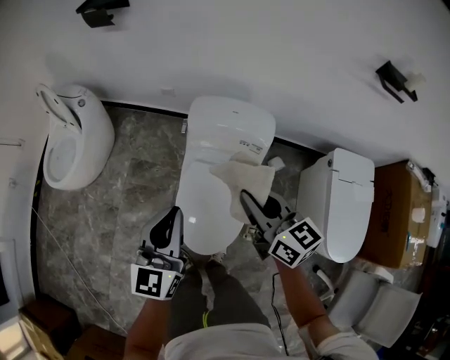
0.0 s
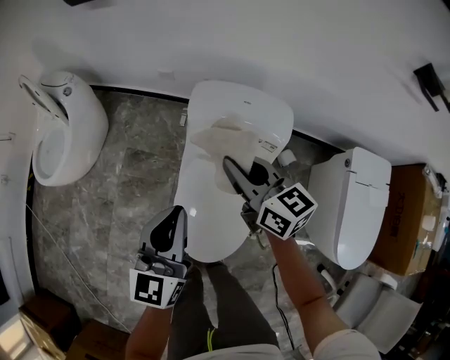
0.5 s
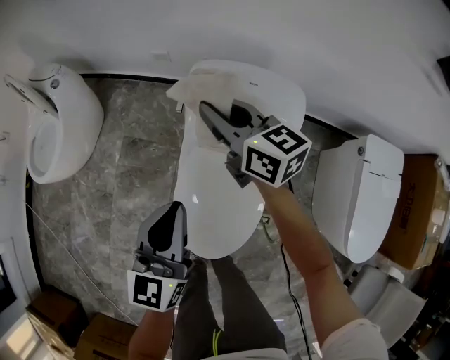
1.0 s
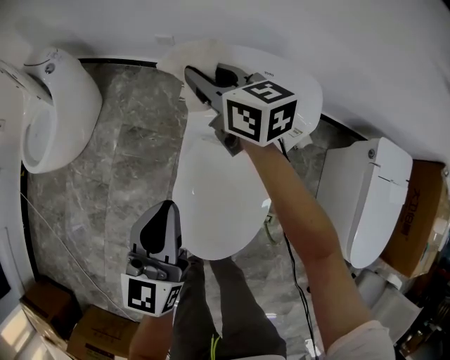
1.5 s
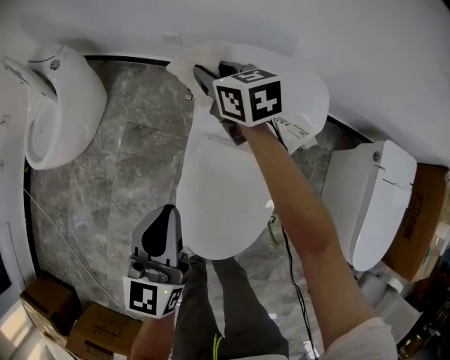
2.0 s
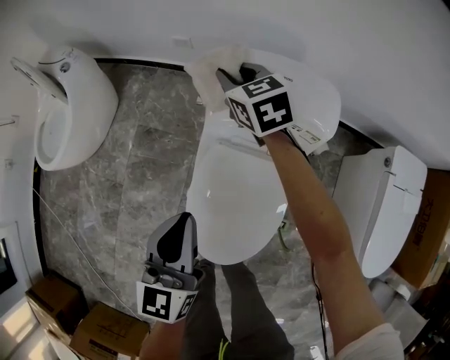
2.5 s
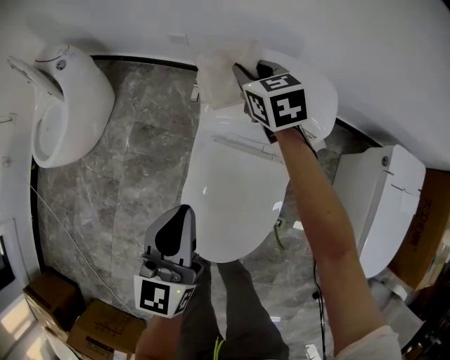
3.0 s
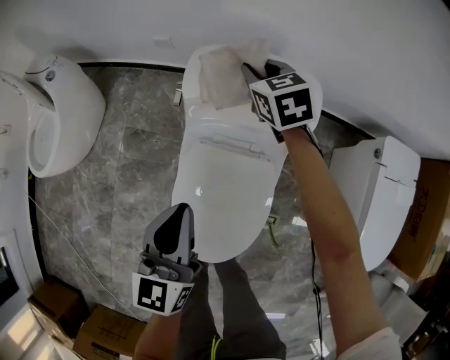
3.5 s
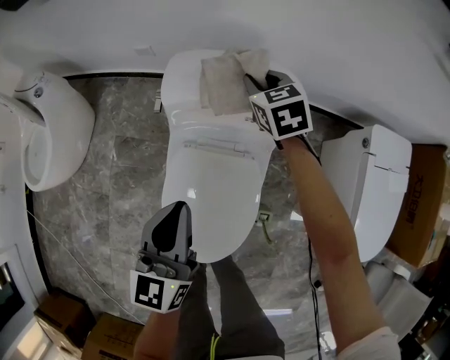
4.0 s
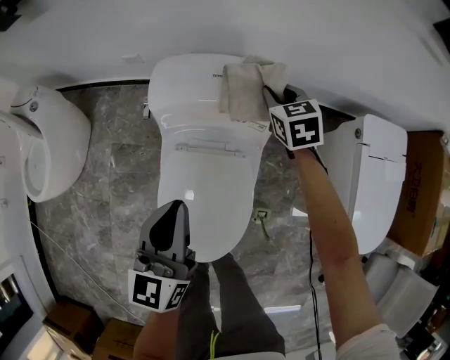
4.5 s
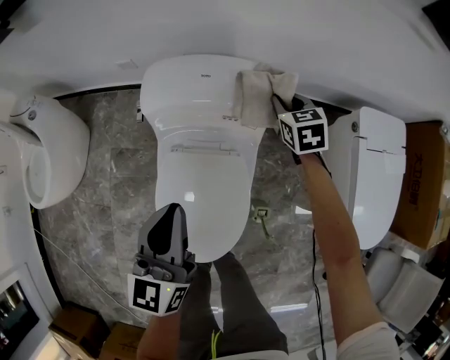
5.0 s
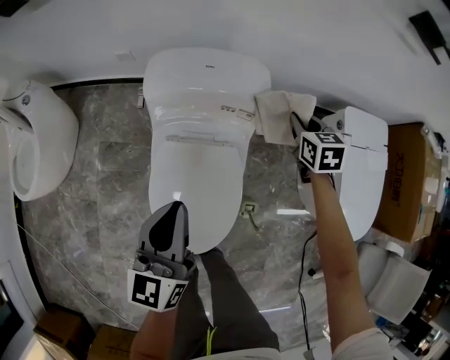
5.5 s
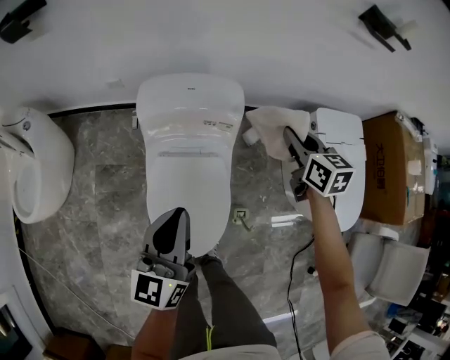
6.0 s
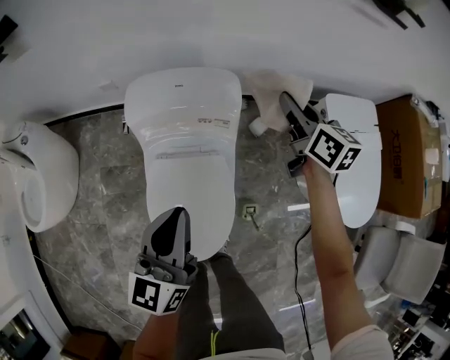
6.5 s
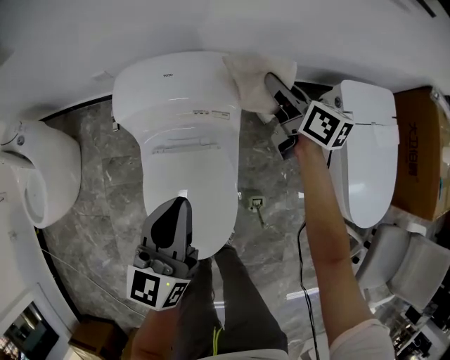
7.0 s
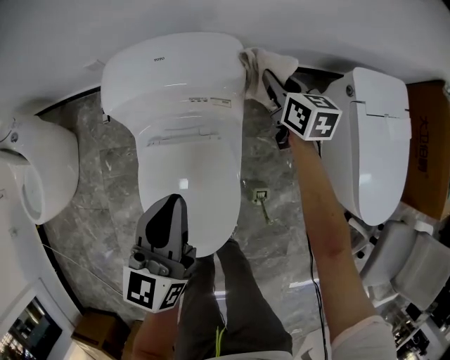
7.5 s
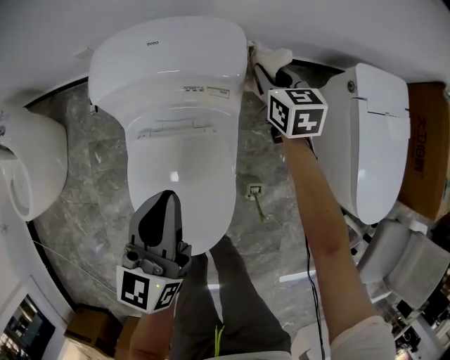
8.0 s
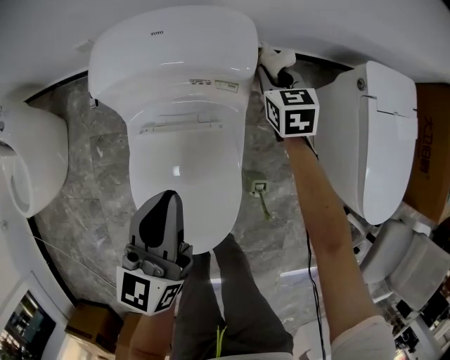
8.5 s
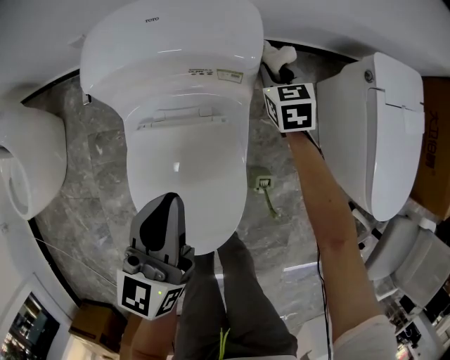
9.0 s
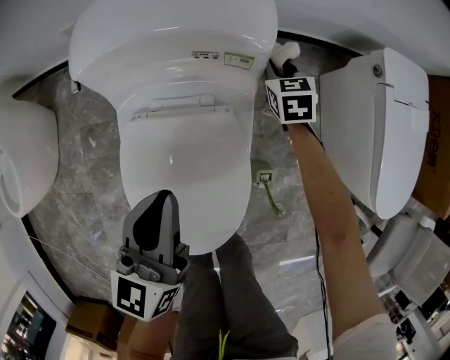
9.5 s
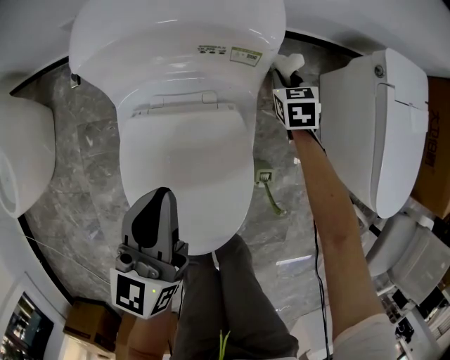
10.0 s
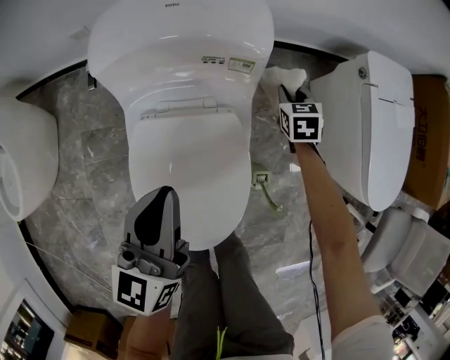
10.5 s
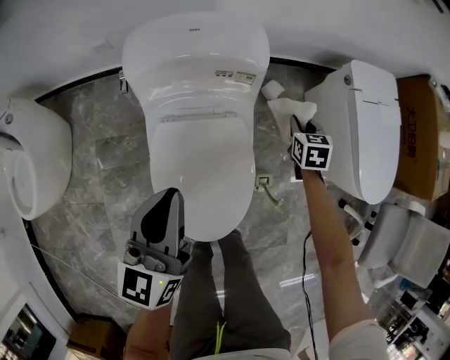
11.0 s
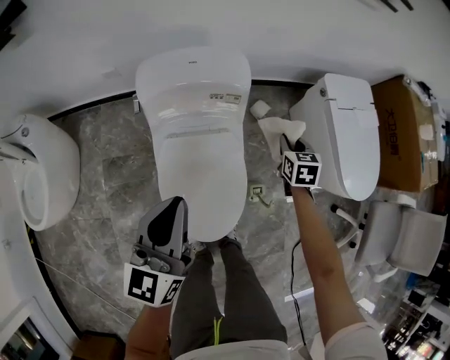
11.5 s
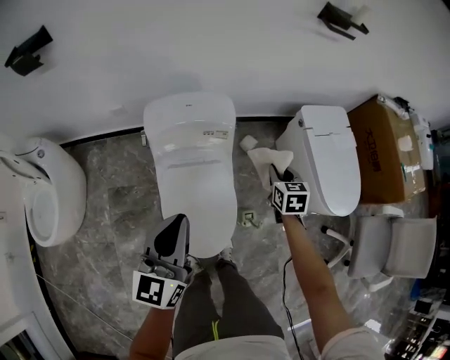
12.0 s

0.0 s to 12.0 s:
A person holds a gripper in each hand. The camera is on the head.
0.0 to 2.0 s: The left gripper is displaced downward and forward by approximately 25 cm. Meanwhile the right gripper moves forward and downward, some 50 cm.
2.0 to 4.0 s: The left gripper travels to the right by some 10 cm; the right gripper moves to the right, about 20 cm, and rotates about 30 degrees.
4.0 to 6.0 s: The left gripper travels upward and backward by some 15 cm; the right gripper shifts some 30 cm backward, to the right and upward, and swivels roughly 30 degrees.
6.0 to 8.0 s: The left gripper heads downward, forward and to the right, covering about 20 cm, while the right gripper shifts some 30 cm downward and forward.
8.0 to 10.0 s: The left gripper is displaced downward and to the left by some 10 cm, while the right gripper heads downward, covering about 20 cm, and rotates approximately 20 degrees.
10.0 to 12.0 s: The grippers both shift upward and backward by approximately 40 cm.

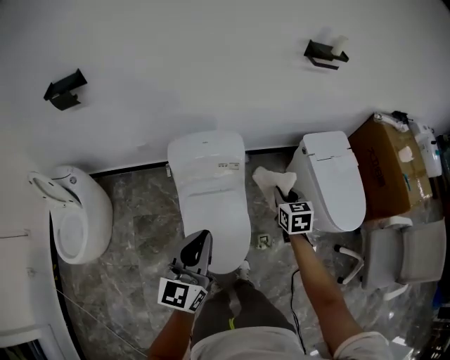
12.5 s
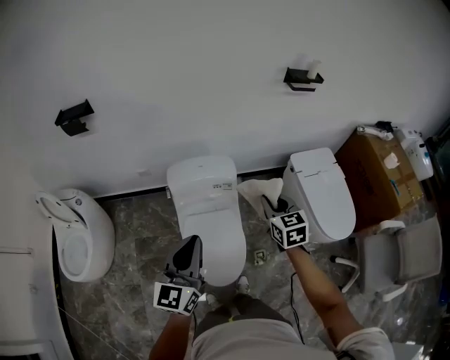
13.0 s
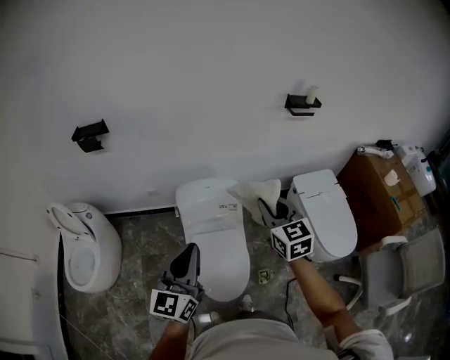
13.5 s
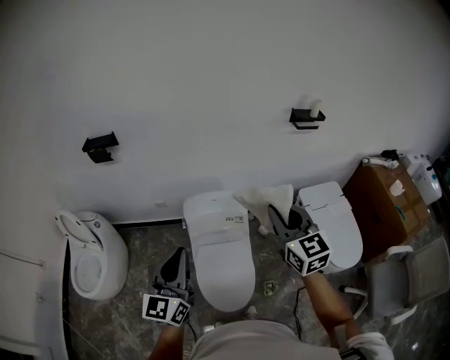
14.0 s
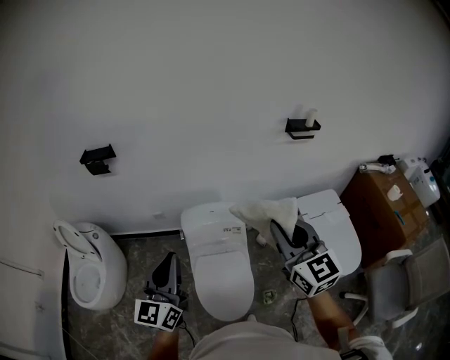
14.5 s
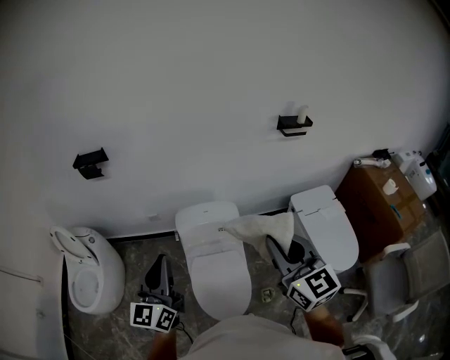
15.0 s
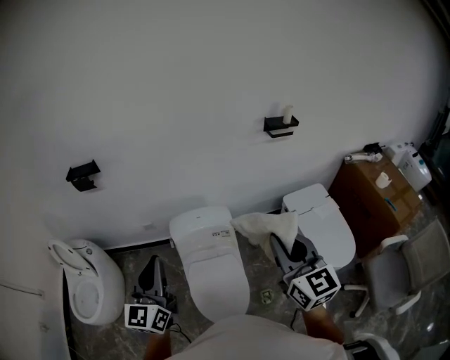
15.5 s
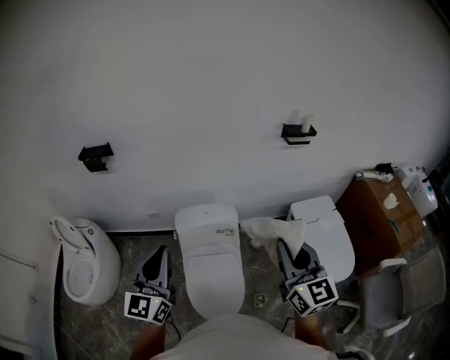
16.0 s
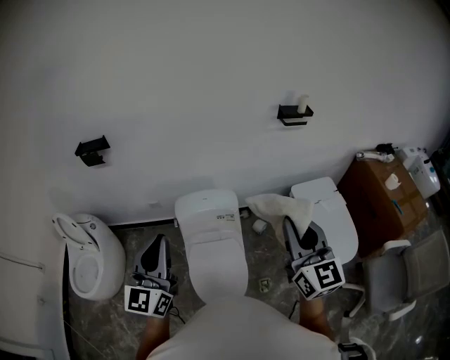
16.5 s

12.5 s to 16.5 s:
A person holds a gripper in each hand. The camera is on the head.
12.5 to 14.5 s: The right gripper moves upward, about 40 cm, and points its fingers roughly 40 degrees further upward. Meanwhile the left gripper travels upward and to the left by approximately 20 cm.
14.5 to 16.5 s: The right gripper shifts approximately 10 cm to the right.

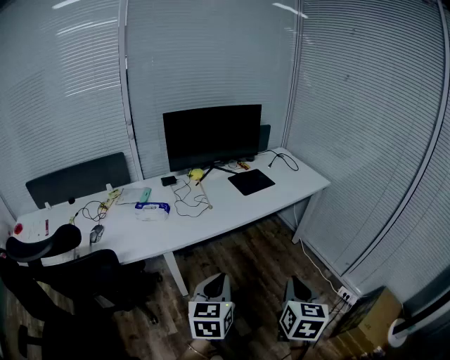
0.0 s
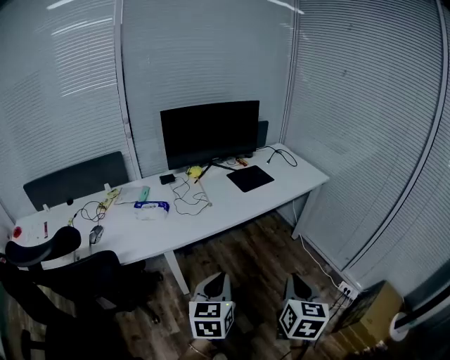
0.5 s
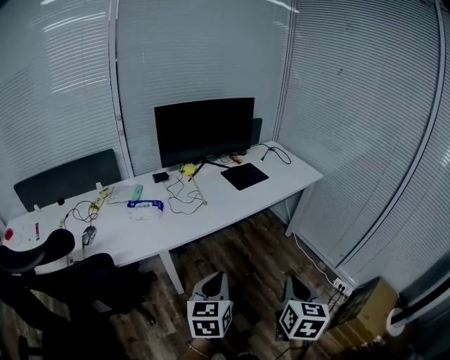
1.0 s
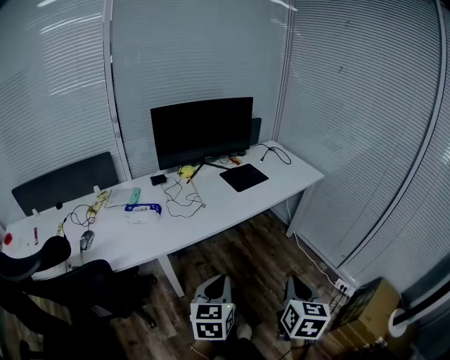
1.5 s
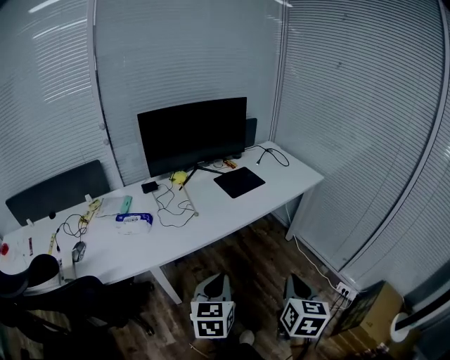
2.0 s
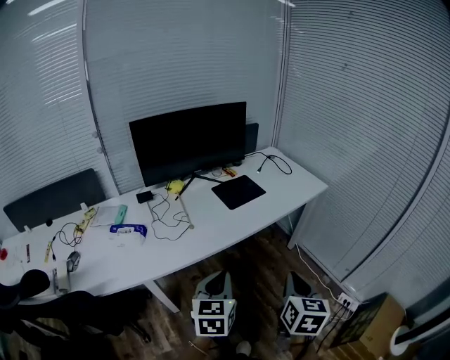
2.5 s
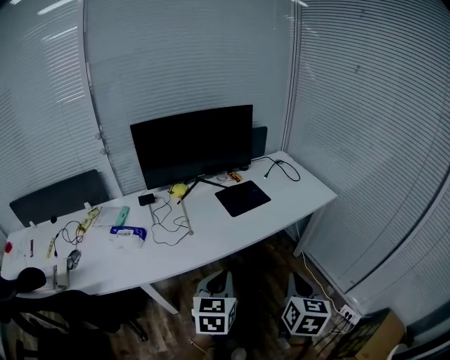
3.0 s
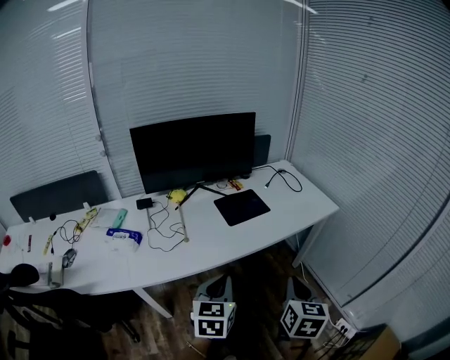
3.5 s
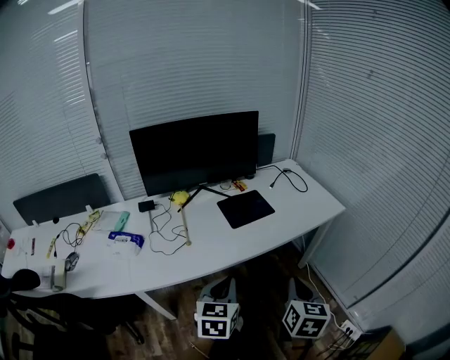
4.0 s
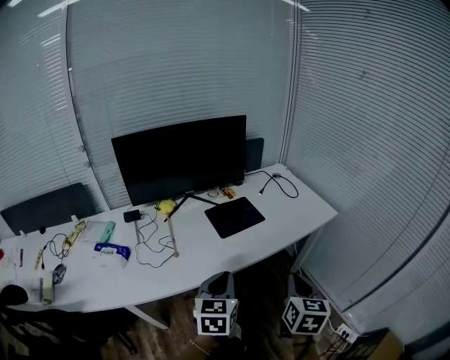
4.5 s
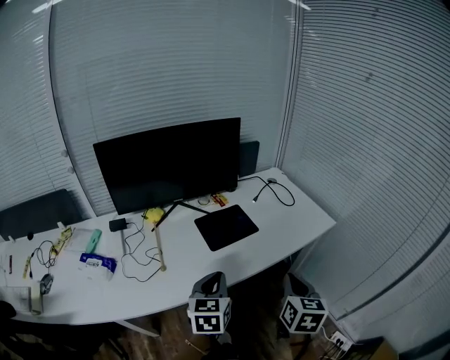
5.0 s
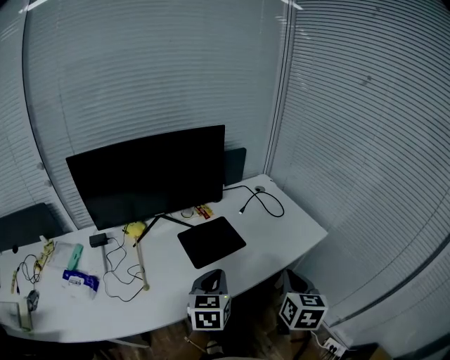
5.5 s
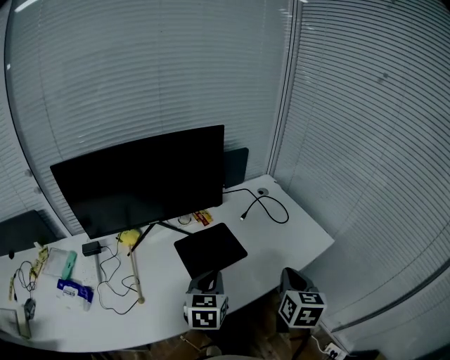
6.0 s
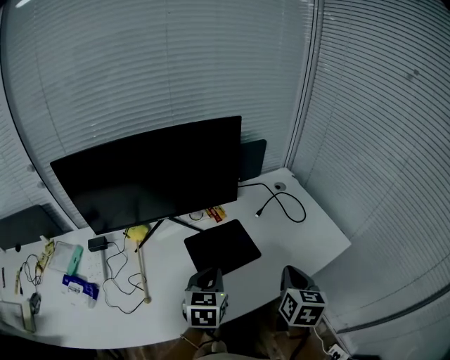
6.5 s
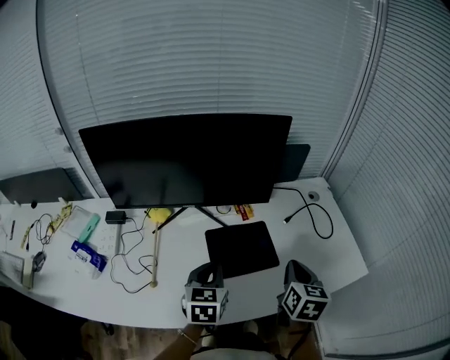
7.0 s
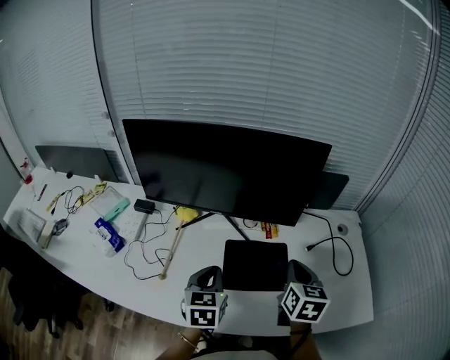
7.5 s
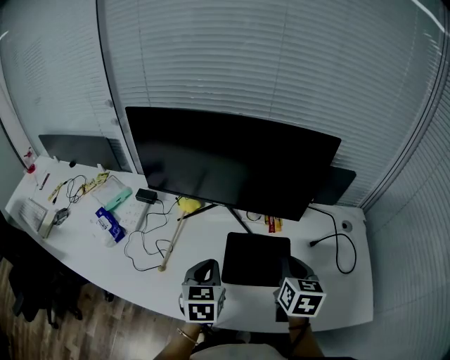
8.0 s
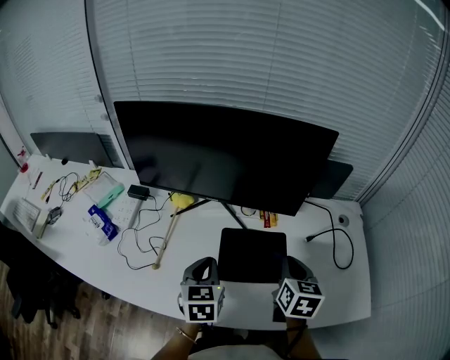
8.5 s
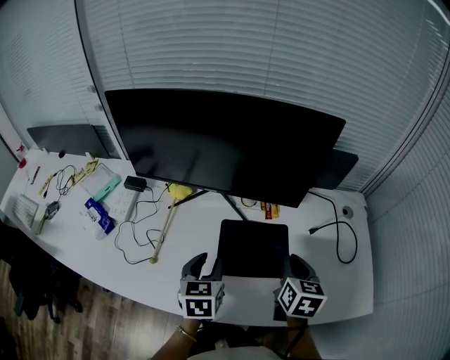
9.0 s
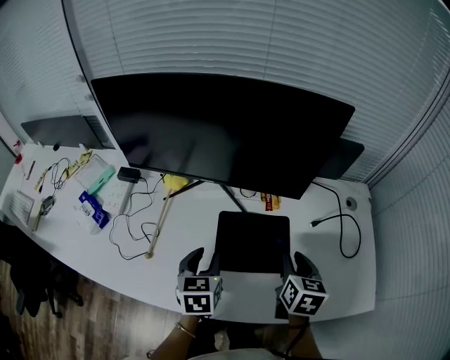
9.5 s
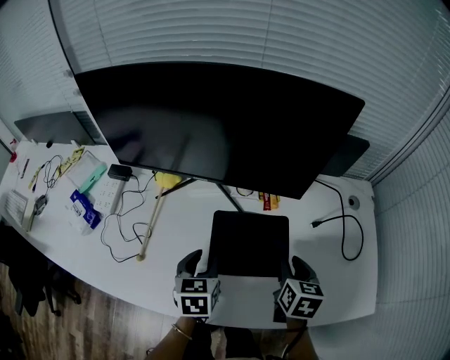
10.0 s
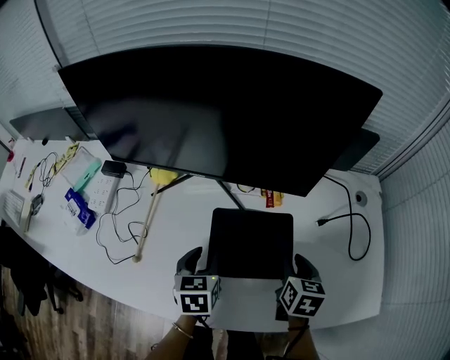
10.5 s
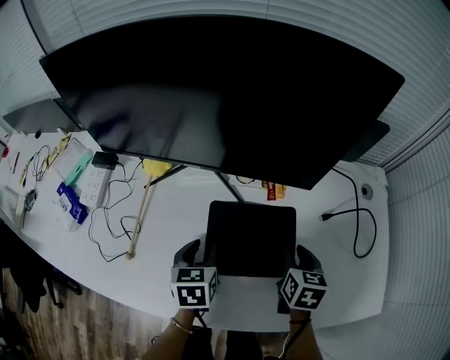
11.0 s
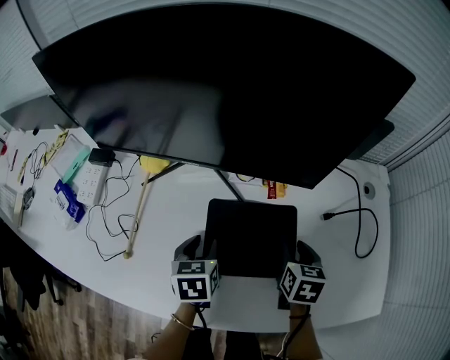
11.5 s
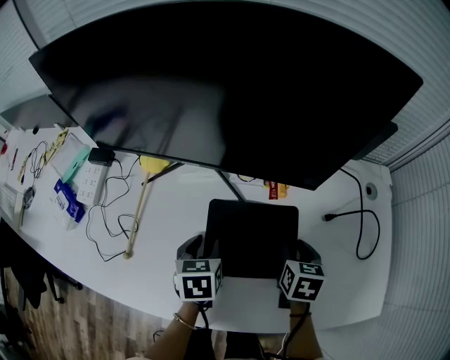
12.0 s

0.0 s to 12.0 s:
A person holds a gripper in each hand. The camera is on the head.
0.0 to 2.0 s: Both grippers move forward, approximately 10 cm.
2.0 to 4.0 s: The right gripper travels forward by approximately 20 cm, while the left gripper goes approximately 20 cm forward and to the right.
4.0 to 6.0 s: The two grippers go approximately 30 cm forward.
6.0 to 8.0 s: The right gripper moves some 25 cm, and swivels roughly 40 degrees, while the left gripper moves about 15 cm, and swivels about 40 degrees.
8.0 to 10.0 s: Both grippers move downward, roughly 10 cm. The right gripper opens its fingers. Meanwhile the left gripper opens.
10.0 to 12.0 s: Both grippers travel together downward, some 5 cm.
